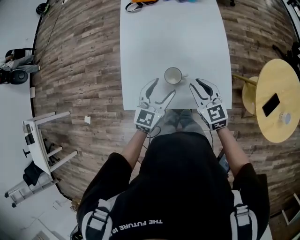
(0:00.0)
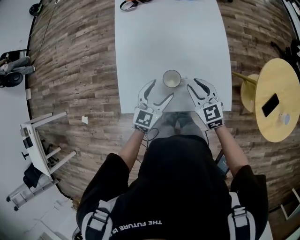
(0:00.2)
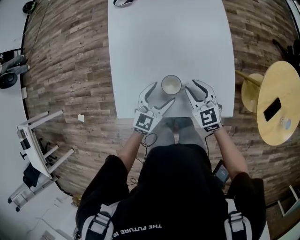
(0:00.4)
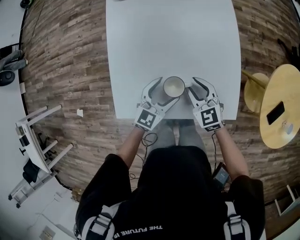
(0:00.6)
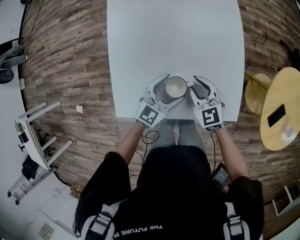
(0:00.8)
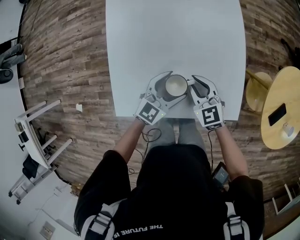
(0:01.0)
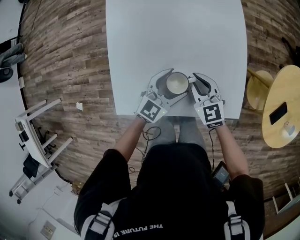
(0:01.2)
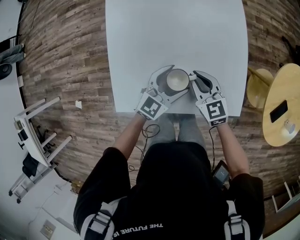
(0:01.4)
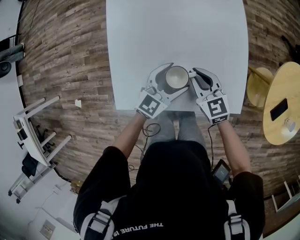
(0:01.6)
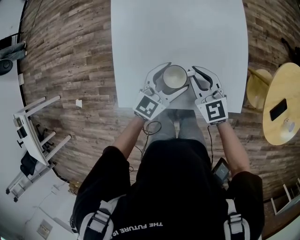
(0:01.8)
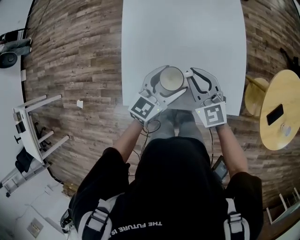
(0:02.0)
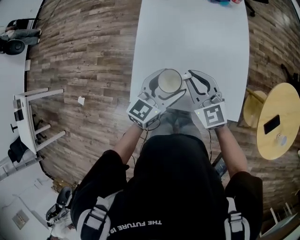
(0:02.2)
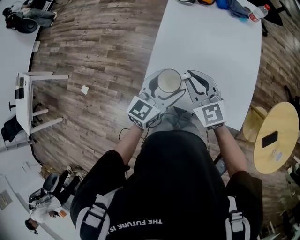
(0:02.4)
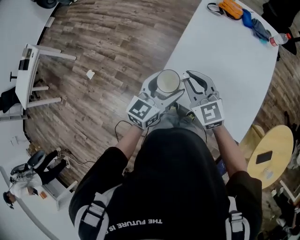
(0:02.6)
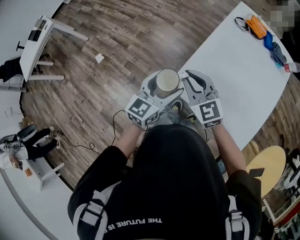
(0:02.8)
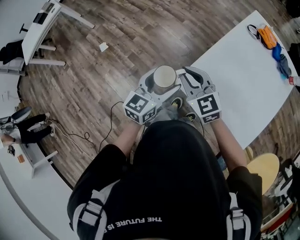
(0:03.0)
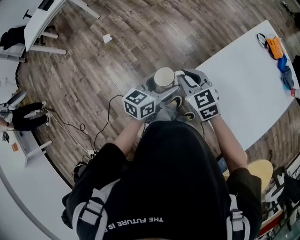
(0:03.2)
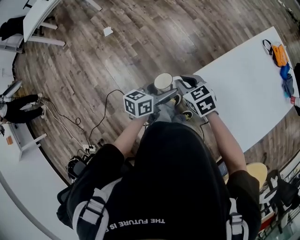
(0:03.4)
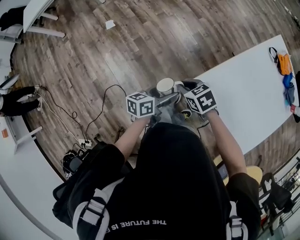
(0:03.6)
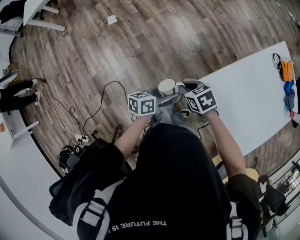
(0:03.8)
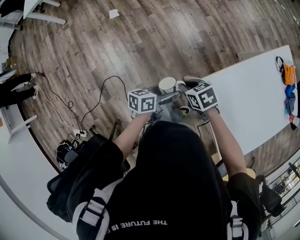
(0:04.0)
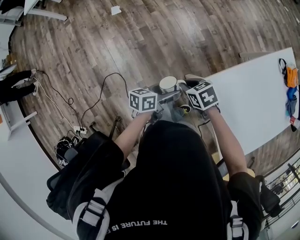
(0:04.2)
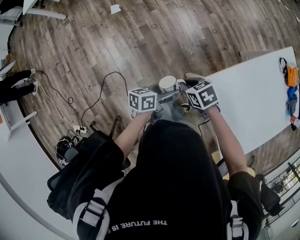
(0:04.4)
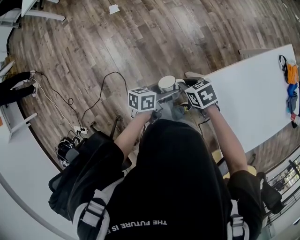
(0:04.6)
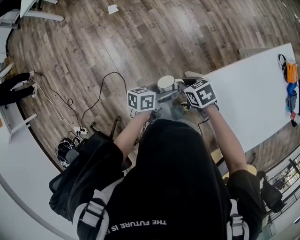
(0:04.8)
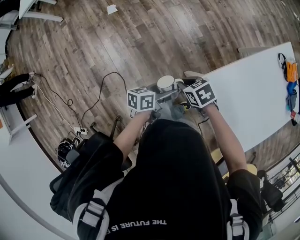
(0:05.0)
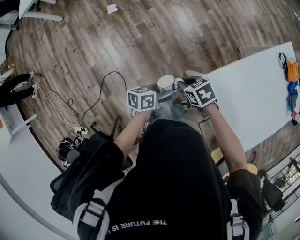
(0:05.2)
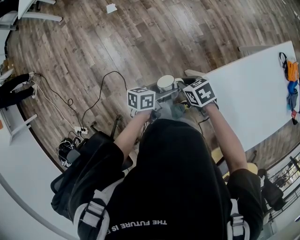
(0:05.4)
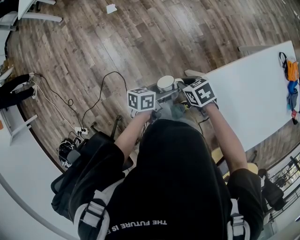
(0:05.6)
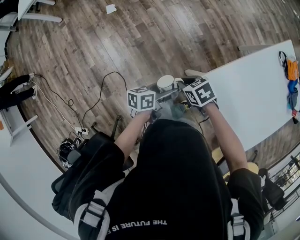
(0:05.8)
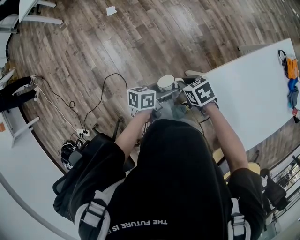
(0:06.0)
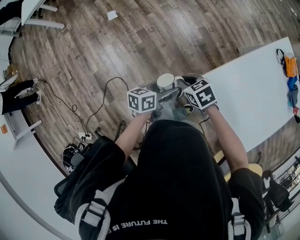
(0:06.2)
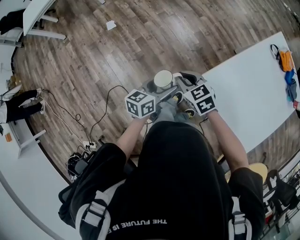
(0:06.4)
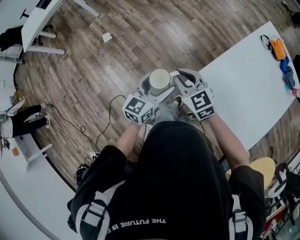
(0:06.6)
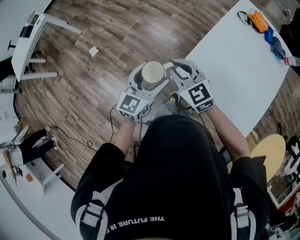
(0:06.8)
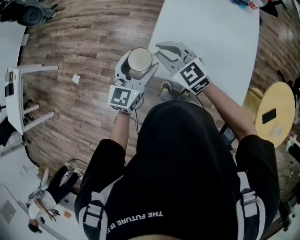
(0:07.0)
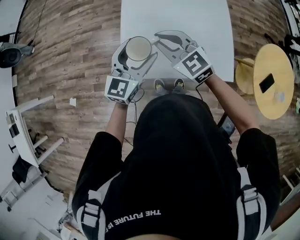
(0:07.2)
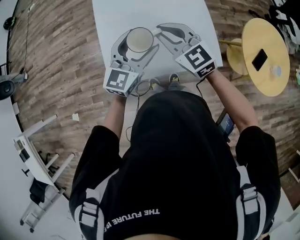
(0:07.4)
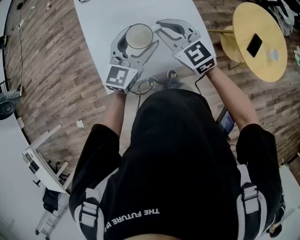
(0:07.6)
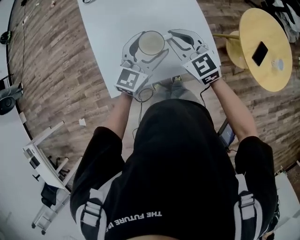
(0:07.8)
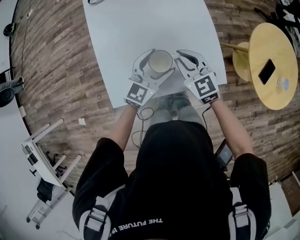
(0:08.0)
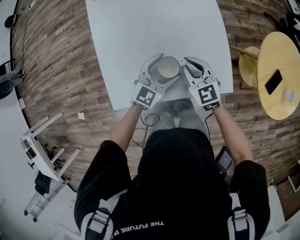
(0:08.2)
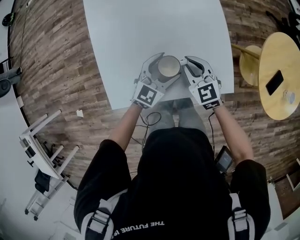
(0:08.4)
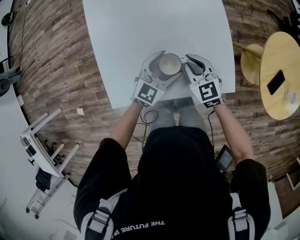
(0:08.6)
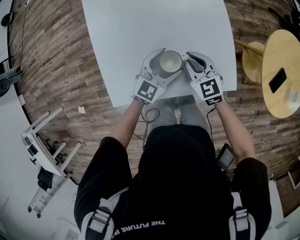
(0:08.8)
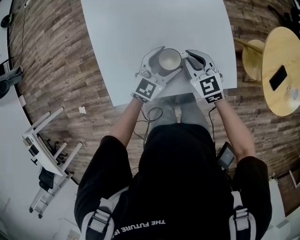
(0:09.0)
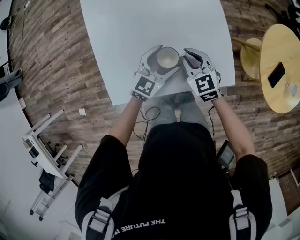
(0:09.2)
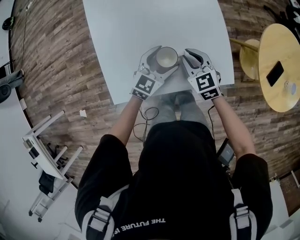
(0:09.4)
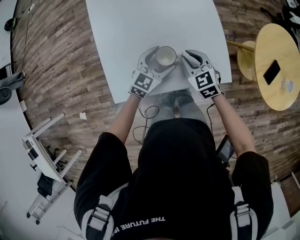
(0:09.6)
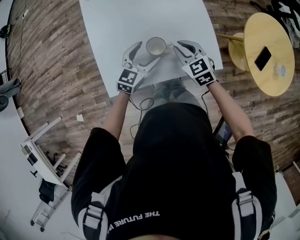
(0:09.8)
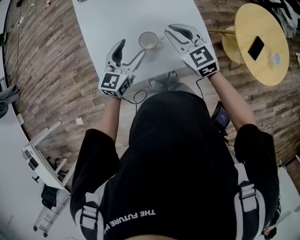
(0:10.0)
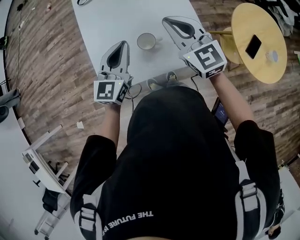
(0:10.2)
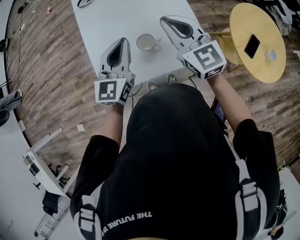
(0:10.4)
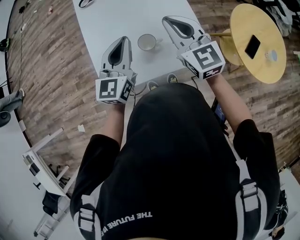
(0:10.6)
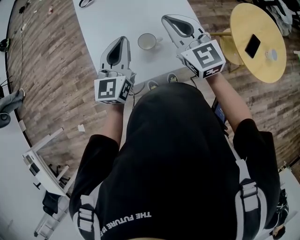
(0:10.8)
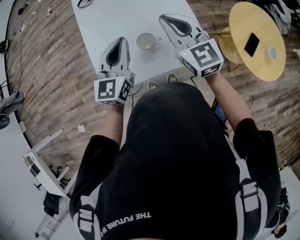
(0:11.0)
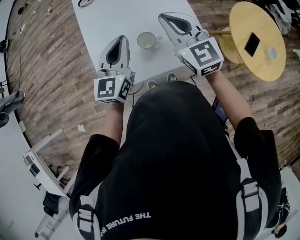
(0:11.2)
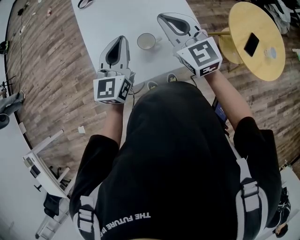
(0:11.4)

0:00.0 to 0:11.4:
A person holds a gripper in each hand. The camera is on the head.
0:00.0 to 0:01.4: The grippers both shift downward and forward by approximately 15 cm.
0:01.4 to 0:02.8: The left gripper moves approximately 40 cm, and rotates some 50 degrees, while the right gripper moves approximately 40 cm, and turns by approximately 40 degrees.
0:02.8 to 0:04.2: Both grippers move downward, approximately 20 cm. The left gripper rotates around the line of its fingers by some 50 degrees, counterclockwise from behind. The right gripper angles its fingers downward, by some 40 degrees.
0:04.2 to 0:05.6: The grippers move only a little.
0:05.6 to 0:07.2: The right gripper moves approximately 40 cm, and points its fingers approximately 40 degrees further upward, while the left gripper shifts by some 40 cm, and rolls clockwise, seen from behind, by about 80 degrees.
0:07.2 to 0:08.6: The right gripper shifts approximately 30 cm to the right and downward, and turns by roughly 30 degrees. The left gripper is displaced to the right, downward and forward by approximately 30 cm, and swivels approximately 30 degrees.
0:08.6 to 0:10.0: The right gripper is displaced upward by approximately 15 cm. The left gripper heads upward and to the left, covering about 15 cm.
0:10.0 to 0:11.4: The grippers both shift upward by about 10 cm. The left gripper closes.

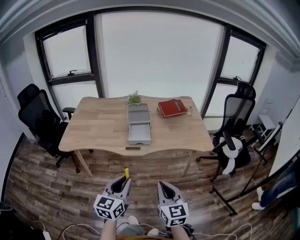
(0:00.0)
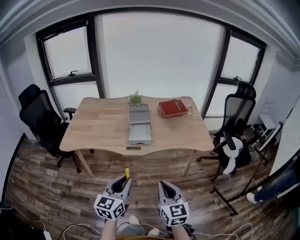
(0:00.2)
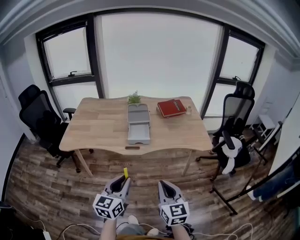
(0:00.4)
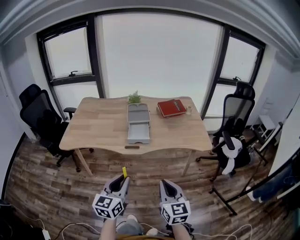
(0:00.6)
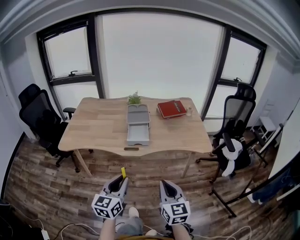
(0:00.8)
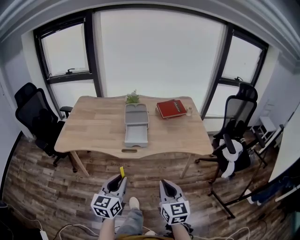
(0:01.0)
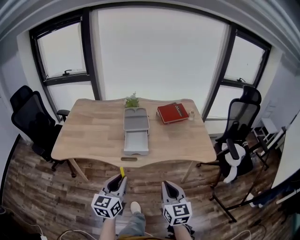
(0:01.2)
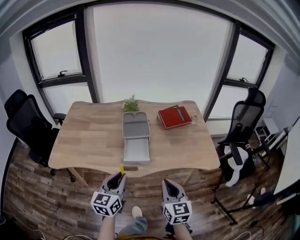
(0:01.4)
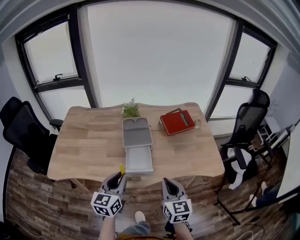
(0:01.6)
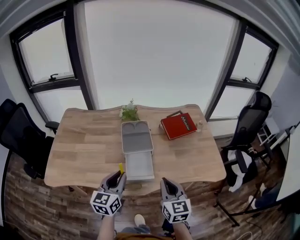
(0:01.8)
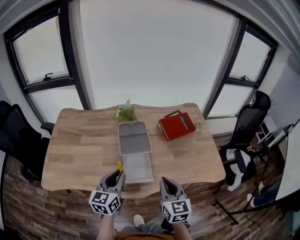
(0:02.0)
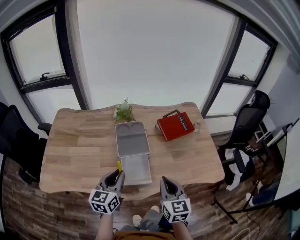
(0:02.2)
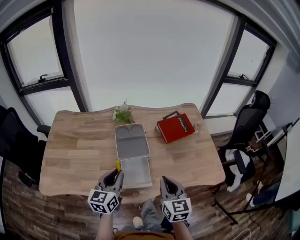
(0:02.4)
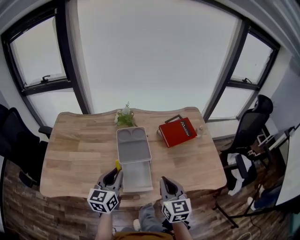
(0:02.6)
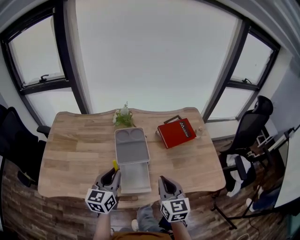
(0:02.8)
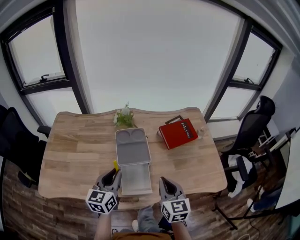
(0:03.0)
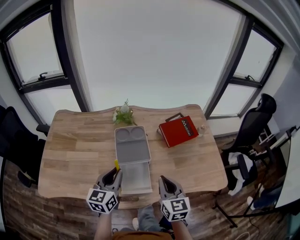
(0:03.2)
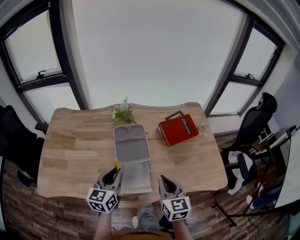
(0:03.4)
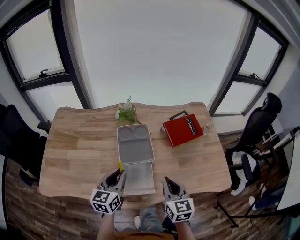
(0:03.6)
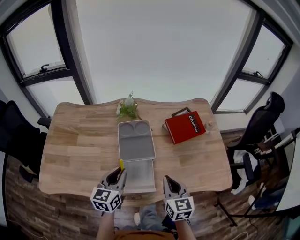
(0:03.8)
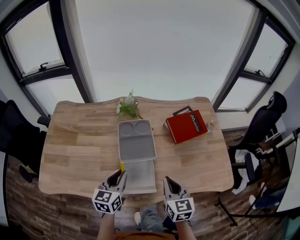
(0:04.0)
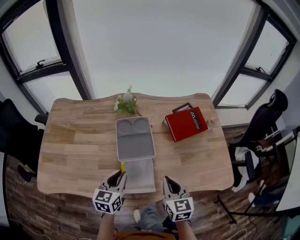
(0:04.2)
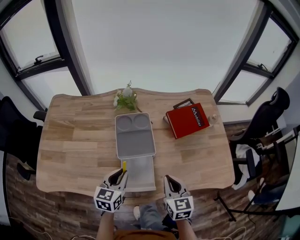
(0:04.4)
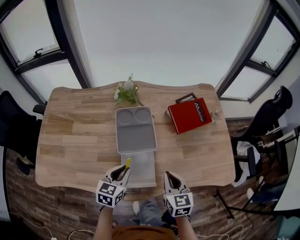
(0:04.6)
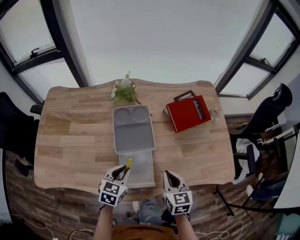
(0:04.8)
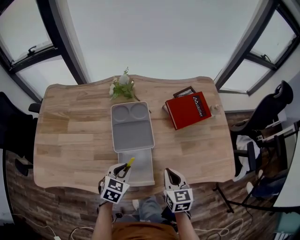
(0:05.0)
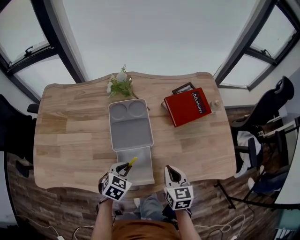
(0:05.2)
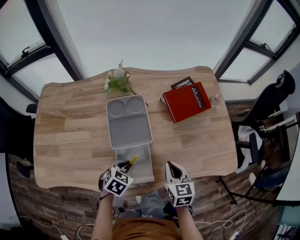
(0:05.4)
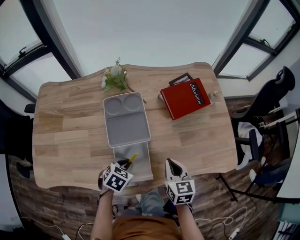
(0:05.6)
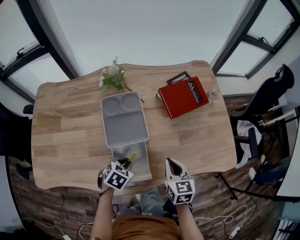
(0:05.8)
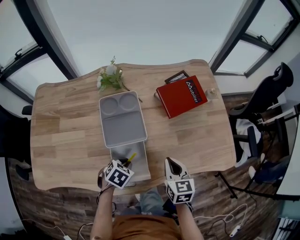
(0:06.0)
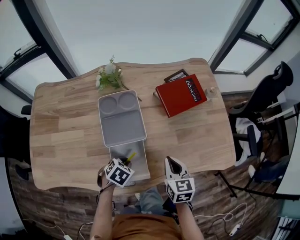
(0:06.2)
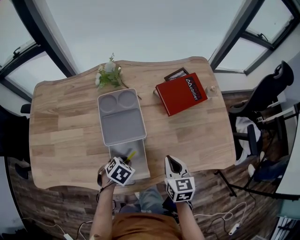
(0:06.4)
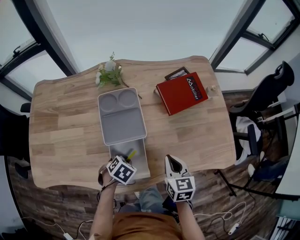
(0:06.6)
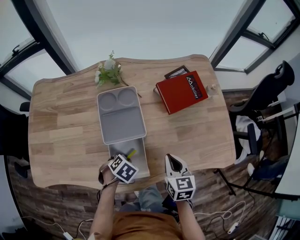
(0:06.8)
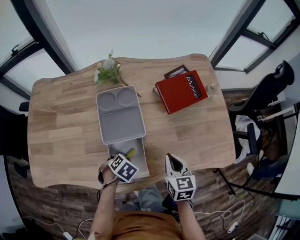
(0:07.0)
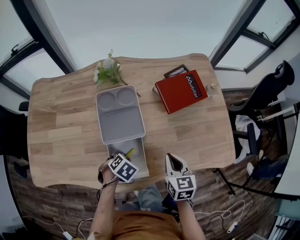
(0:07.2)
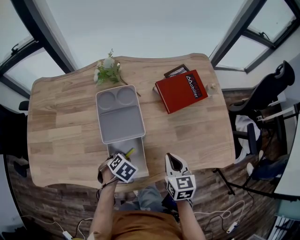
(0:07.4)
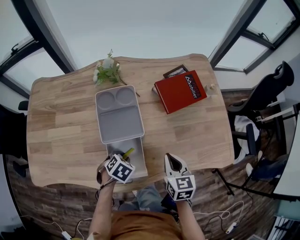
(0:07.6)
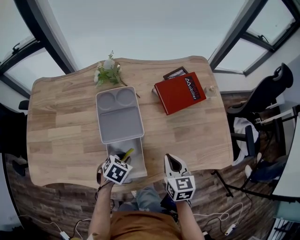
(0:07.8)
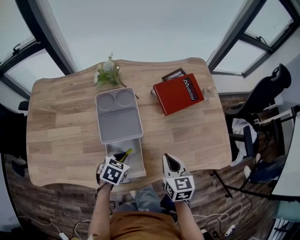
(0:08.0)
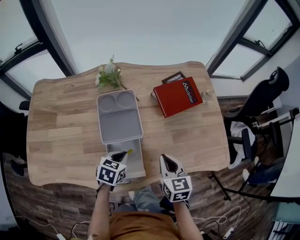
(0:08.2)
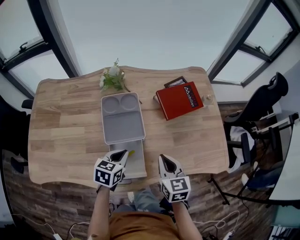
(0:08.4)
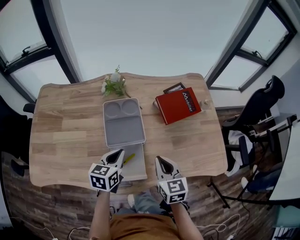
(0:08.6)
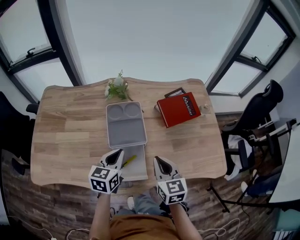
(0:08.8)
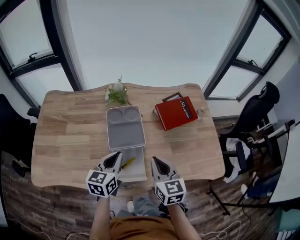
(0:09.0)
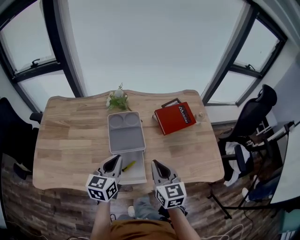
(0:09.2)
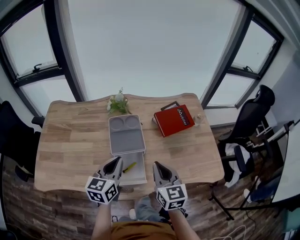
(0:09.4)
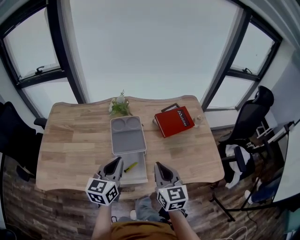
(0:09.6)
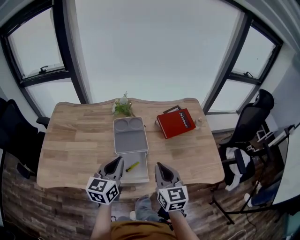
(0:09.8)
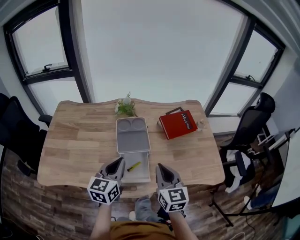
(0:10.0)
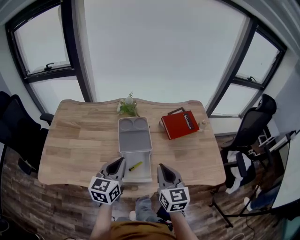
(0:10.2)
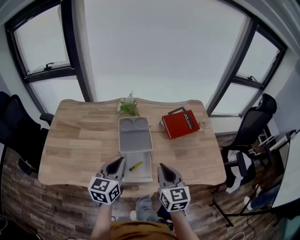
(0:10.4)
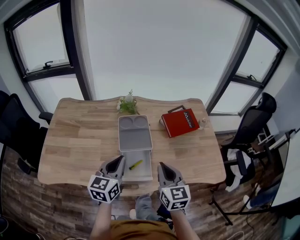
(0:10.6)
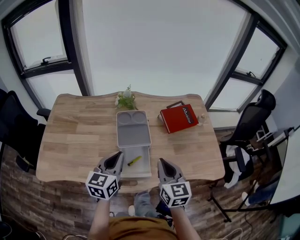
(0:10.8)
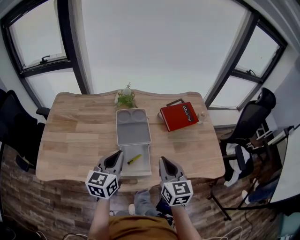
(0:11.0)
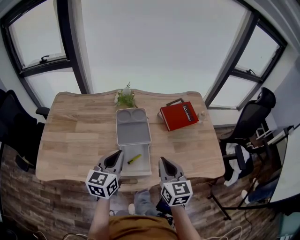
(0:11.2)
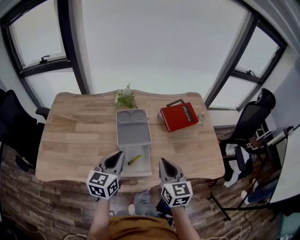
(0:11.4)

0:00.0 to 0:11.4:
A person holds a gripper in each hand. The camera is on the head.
0:00.0 to 0:01.4: The grippers both shift forward by about 20 cm.
0:01.4 to 0:02.8: The two grippers go some 25 cm forward.
0:02.8 to 0:04.2: Both grippers travel together downward, about 10 cm.
0:04.2 to 0:05.6: The left gripper goes about 15 cm downward and to the right, and angles its fingers downward, by some 40 degrees, while the right gripper is displaced downward by roughly 5 cm.
0:05.6 to 0:07.2: The grippers move only a little.
0:07.2 to 0:08.6: The left gripper goes approximately 15 cm upward, and points its fingers approximately 50 degrees further upward, while the right gripper moves upward, some 5 cm.
0:08.6 to 0:10.0: The grippers both shift upward and backward by about 15 cm. The left gripper turns by roughly 20 degrees.
0:10.0 to 0:11.4: The grippers stay close to where they were, moving slightly.

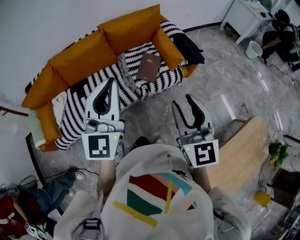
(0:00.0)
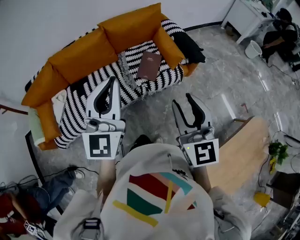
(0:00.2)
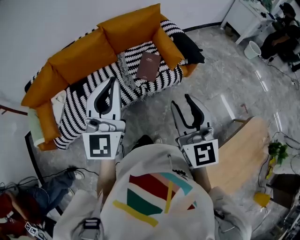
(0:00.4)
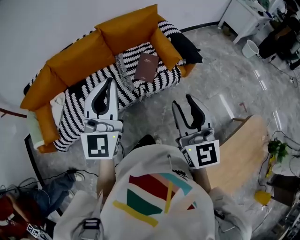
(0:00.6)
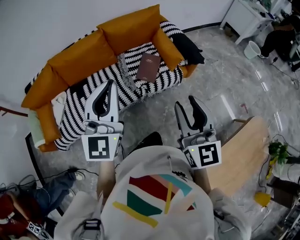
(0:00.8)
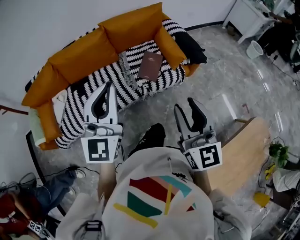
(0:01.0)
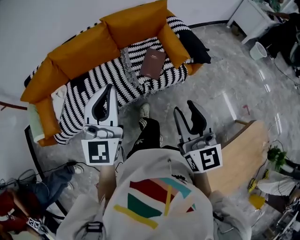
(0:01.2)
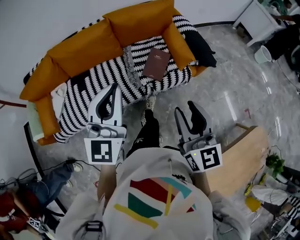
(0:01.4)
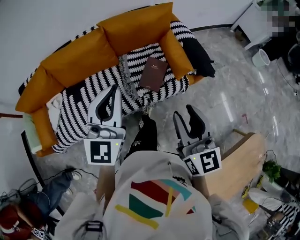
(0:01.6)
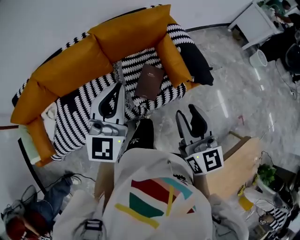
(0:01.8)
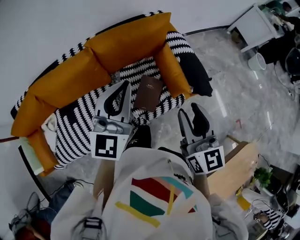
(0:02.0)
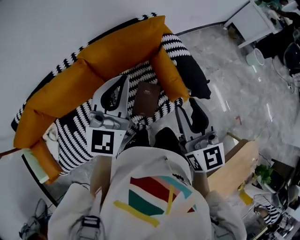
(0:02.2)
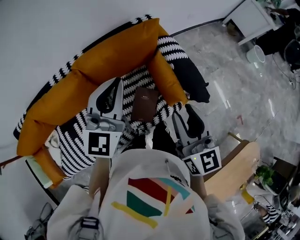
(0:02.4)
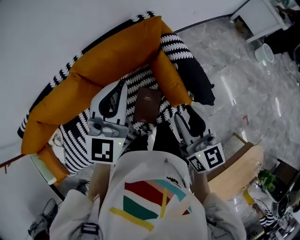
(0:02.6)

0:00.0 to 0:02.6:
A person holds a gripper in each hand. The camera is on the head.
0:00.0 to 0:01.2: The grippers make only small movements.
0:01.2 to 0:02.6: The two grippers travel together, forward, roughly 50 cm.
